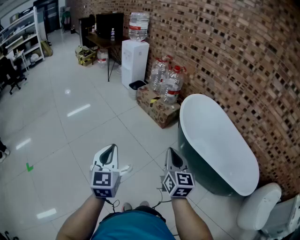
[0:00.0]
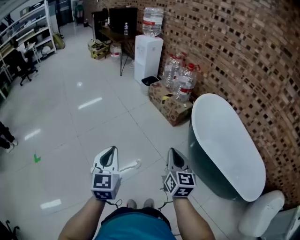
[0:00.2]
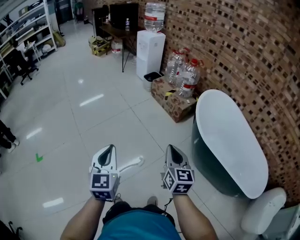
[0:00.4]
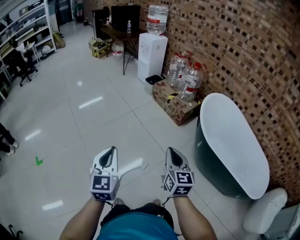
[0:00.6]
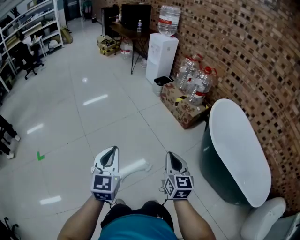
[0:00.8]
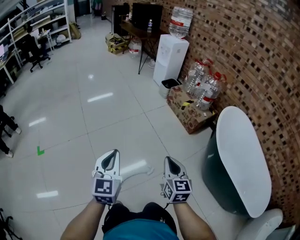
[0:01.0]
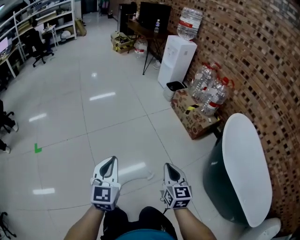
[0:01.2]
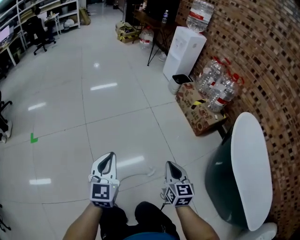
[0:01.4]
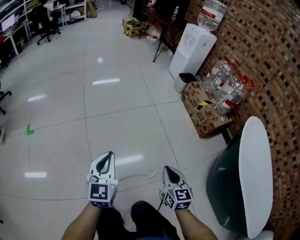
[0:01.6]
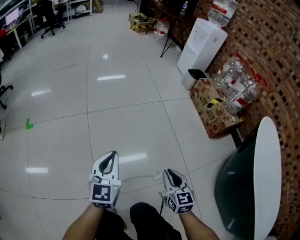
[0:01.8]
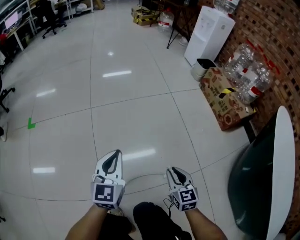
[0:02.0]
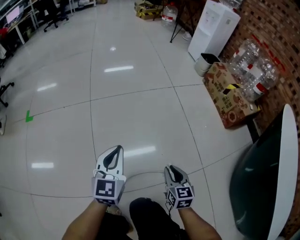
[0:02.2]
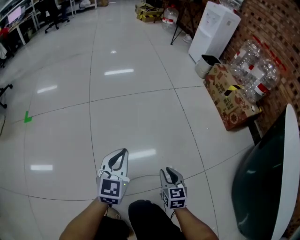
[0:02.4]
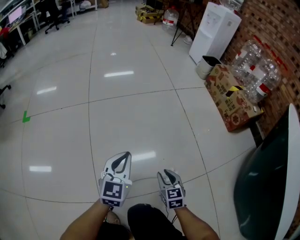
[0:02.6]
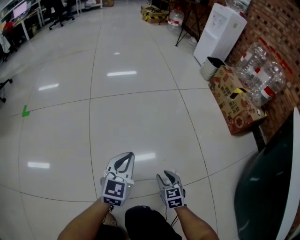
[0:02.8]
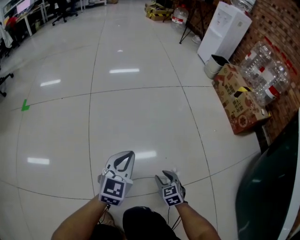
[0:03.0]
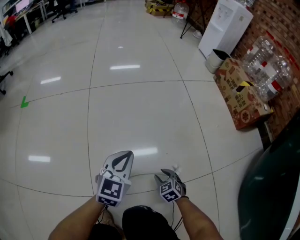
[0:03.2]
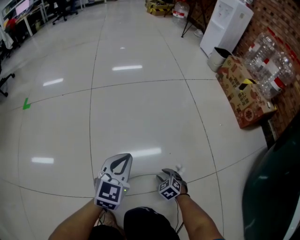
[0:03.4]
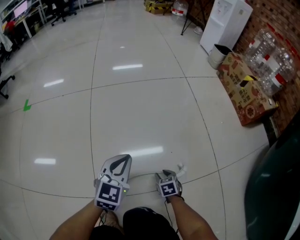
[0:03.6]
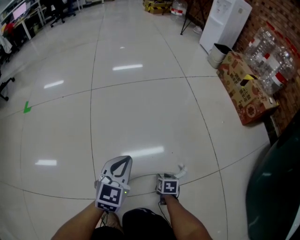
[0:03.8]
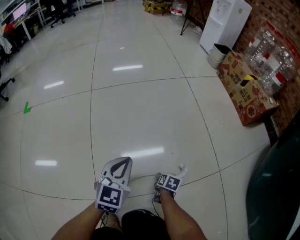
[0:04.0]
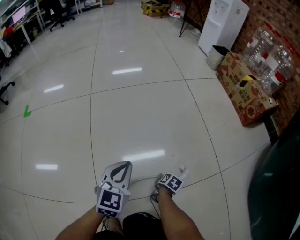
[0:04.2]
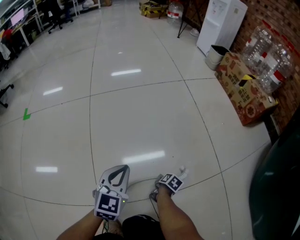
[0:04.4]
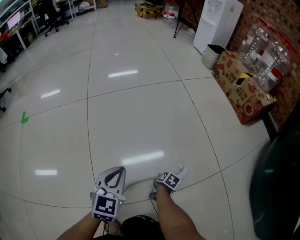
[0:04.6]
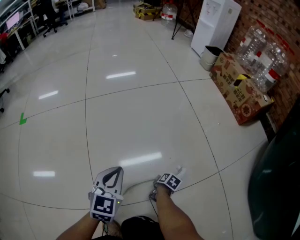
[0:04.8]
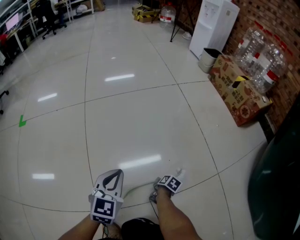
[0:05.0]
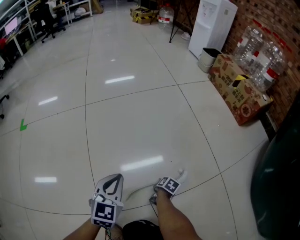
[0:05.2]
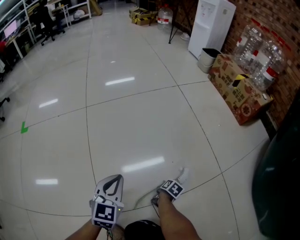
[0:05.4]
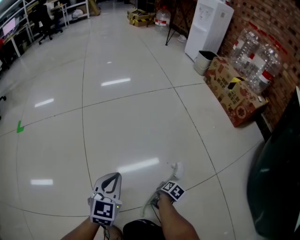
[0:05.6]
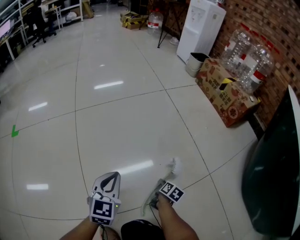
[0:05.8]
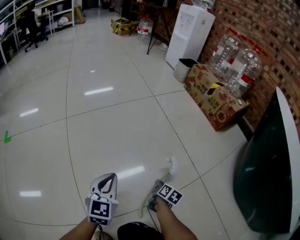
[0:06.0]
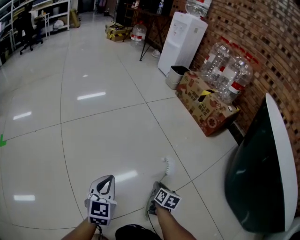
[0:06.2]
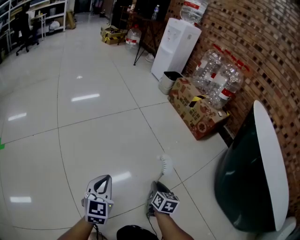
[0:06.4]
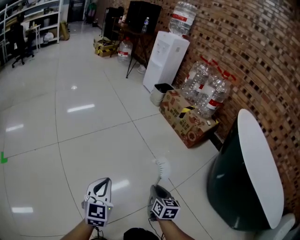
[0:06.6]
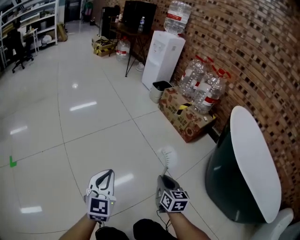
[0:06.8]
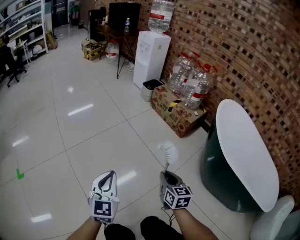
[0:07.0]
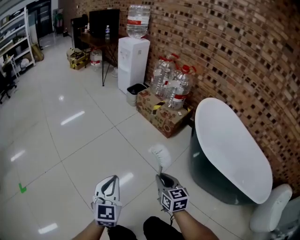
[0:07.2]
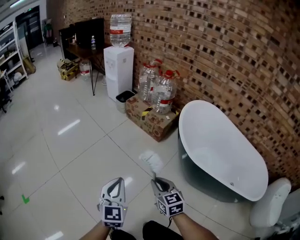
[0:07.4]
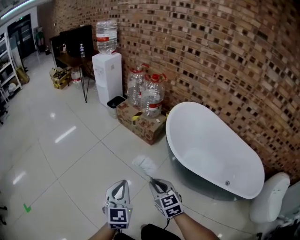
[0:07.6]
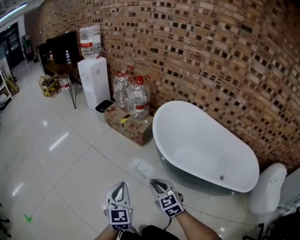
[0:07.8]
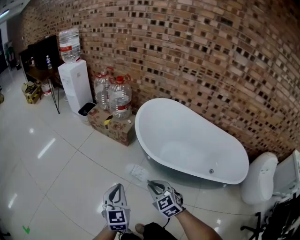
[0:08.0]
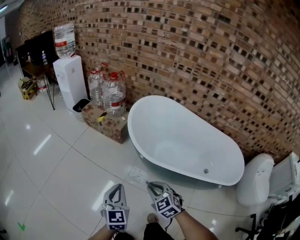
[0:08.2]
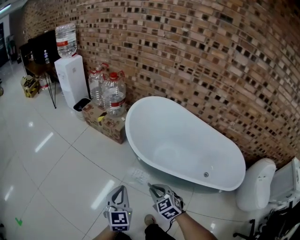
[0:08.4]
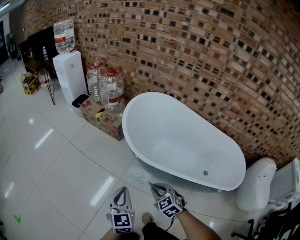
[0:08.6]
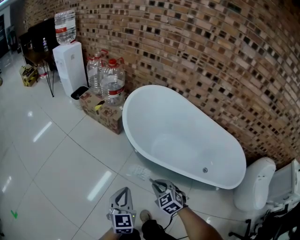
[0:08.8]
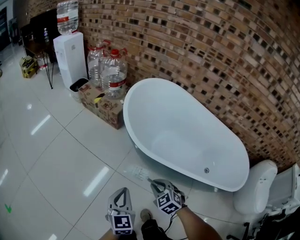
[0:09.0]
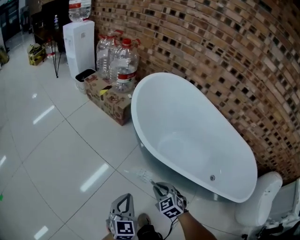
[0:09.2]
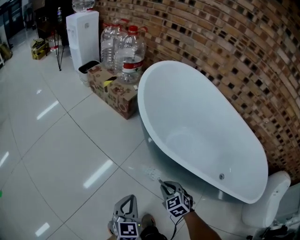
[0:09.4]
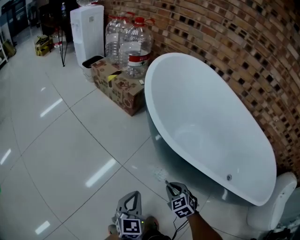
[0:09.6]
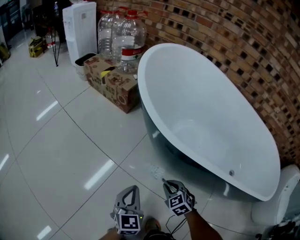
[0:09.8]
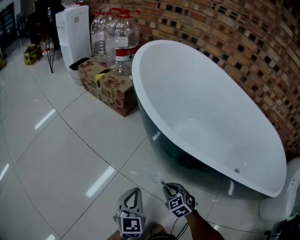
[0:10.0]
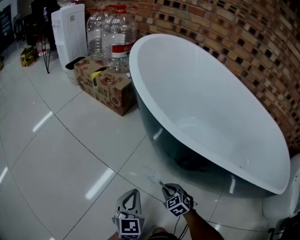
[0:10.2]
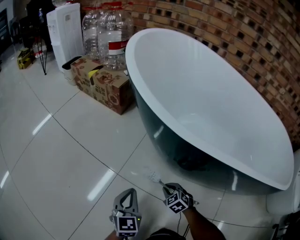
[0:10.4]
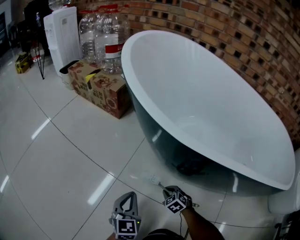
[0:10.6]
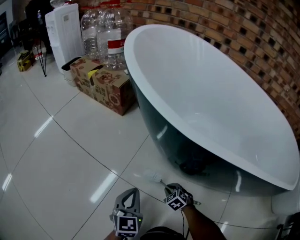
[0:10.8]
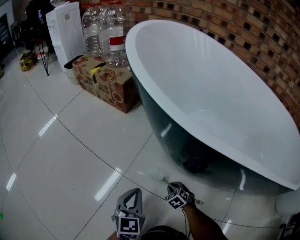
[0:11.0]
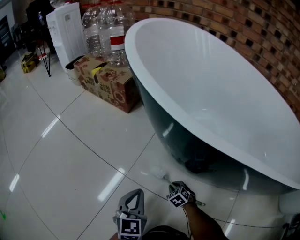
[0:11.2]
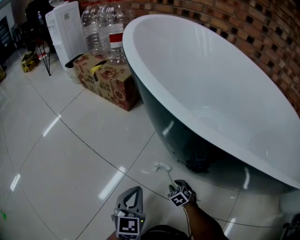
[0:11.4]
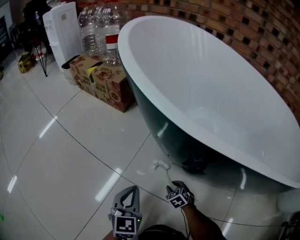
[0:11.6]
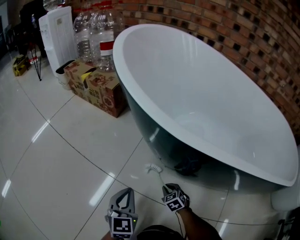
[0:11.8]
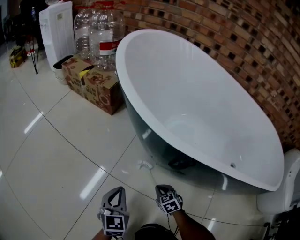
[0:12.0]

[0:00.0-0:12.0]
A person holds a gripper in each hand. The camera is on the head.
0:00.0 to 0:01.6: The grippers both shift downward, to the left and forward by approximately 50 cm. The right gripper turns by about 30 degrees.
0:01.6 to 0:03.0: Both grippers move downward, roughly 50 cm. The right gripper swivels some 30 degrees, and opens its fingers.
0:03.0 to 0:04.4: The left gripper shifts by roughly 5 cm. The right gripper moves downward, roughly 15 cm, and rotates around the line of its fingers by approximately 80 degrees, clockwise from behind.
0:04.4 to 0:06.0: The right gripper shifts some 15 cm upward and to the right, rotates approximately 20 degrees, and closes its fingers.
0:06.0 to 0:07.6: The left gripper shifts about 70 cm upward and to the right, and changes its angle by roughly 20 degrees; the right gripper shifts approximately 80 cm upward, and twists about 50 degrees counterclockwise, seen from behind.
0:07.6 to 0:09.0: The grippers both shift to the right and downward by approximately 30 cm. The right gripper changes its angle by about 30 degrees.
0:09.0 to 0:10.4: The two grippers go roughly 50 cm downward.
0:10.4 to 0:12.0: The right gripper moves roughly 15 cm downward and comes back, and opens, then closes once more.

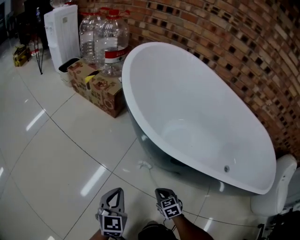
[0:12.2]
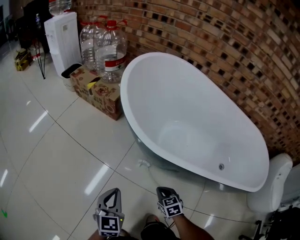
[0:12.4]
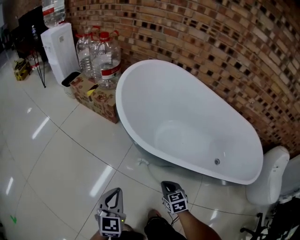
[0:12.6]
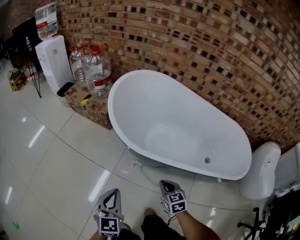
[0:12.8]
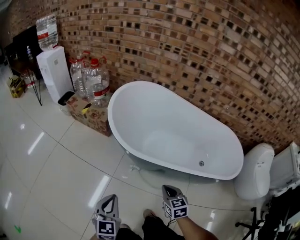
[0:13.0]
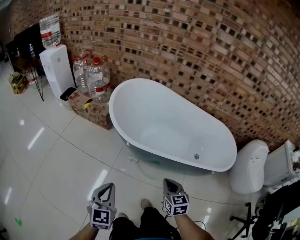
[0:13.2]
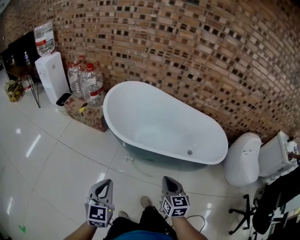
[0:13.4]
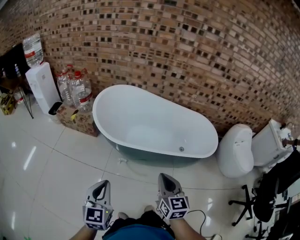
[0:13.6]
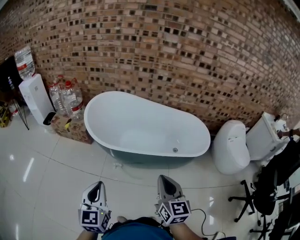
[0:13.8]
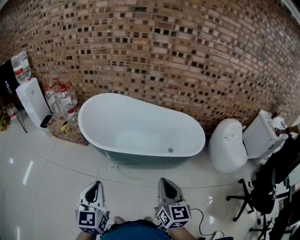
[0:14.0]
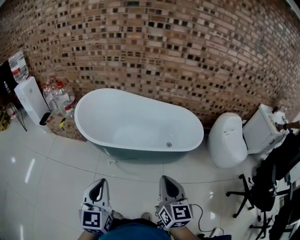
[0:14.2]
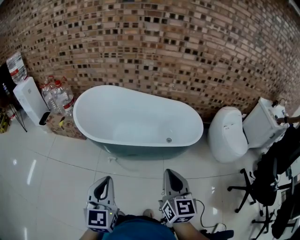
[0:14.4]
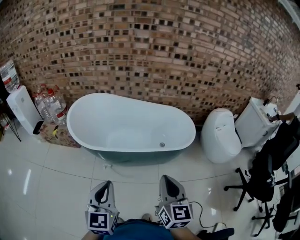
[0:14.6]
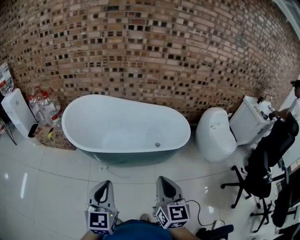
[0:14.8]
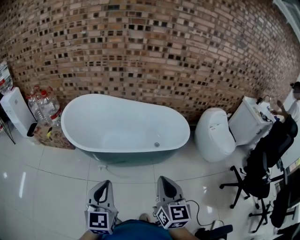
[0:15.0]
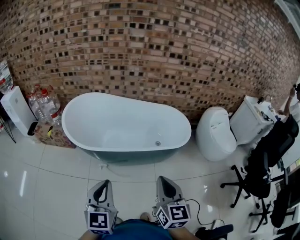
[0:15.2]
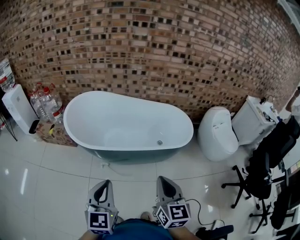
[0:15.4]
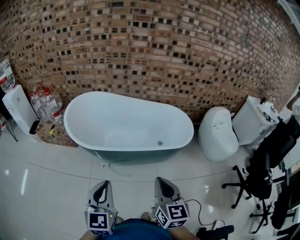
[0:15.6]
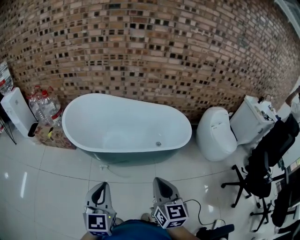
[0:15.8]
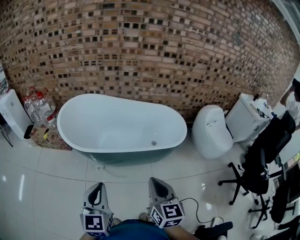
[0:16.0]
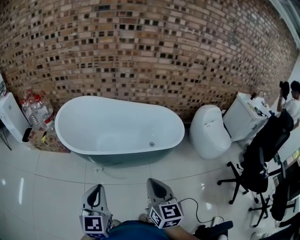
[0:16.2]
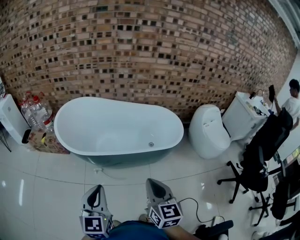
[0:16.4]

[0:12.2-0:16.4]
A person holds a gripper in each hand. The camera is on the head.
0:12.2 to 0:13.6: The left gripper shifts roughly 60 cm upward and backward. The right gripper heads upward, covering approximately 70 cm, and angles its fingers upward, by about 40 degrees.
0:13.6 to 0:15.0: The right gripper is displaced to the right, upward and backward by approximately 20 cm; the left gripper travels to the right by roughly 20 cm.
0:15.0 to 0:16.4: The grippers make only small movements.

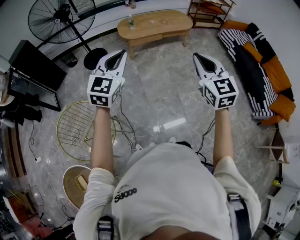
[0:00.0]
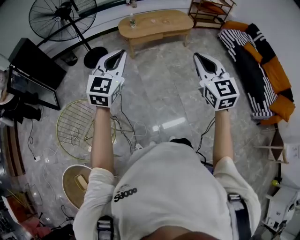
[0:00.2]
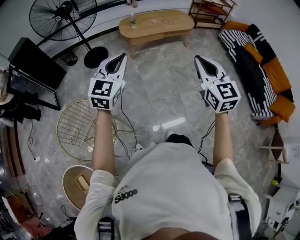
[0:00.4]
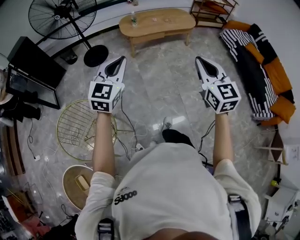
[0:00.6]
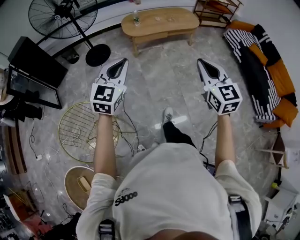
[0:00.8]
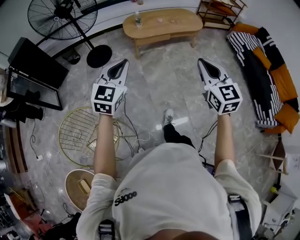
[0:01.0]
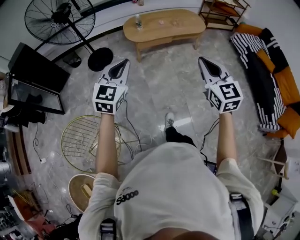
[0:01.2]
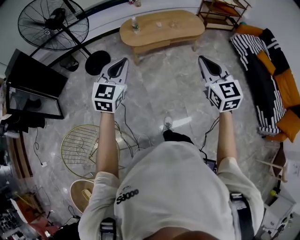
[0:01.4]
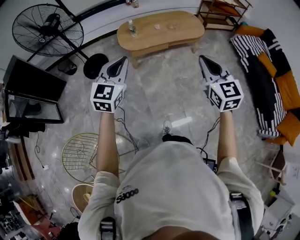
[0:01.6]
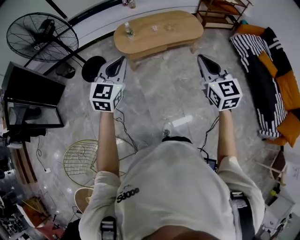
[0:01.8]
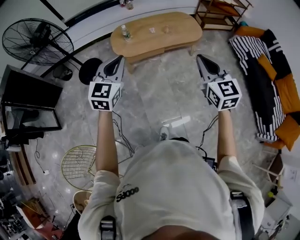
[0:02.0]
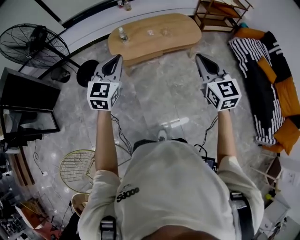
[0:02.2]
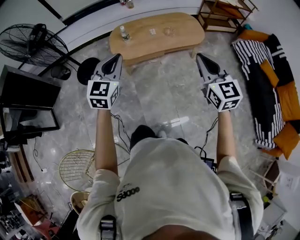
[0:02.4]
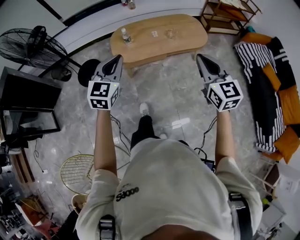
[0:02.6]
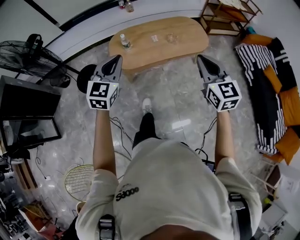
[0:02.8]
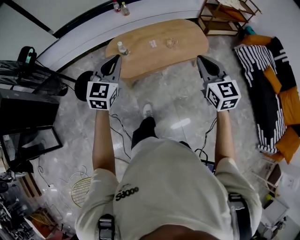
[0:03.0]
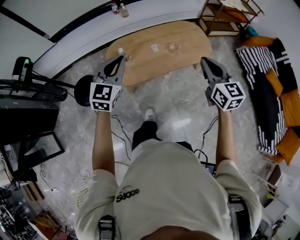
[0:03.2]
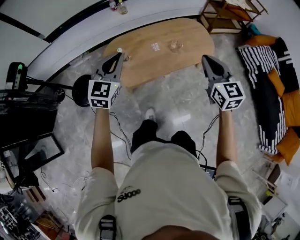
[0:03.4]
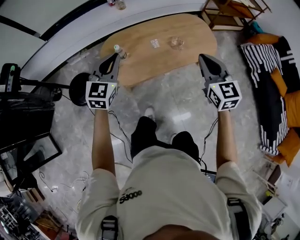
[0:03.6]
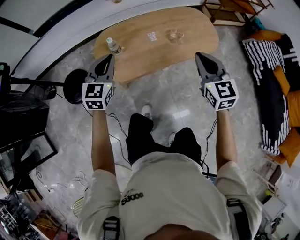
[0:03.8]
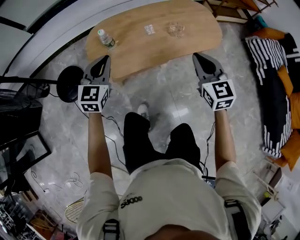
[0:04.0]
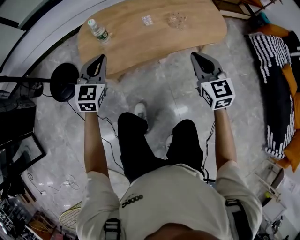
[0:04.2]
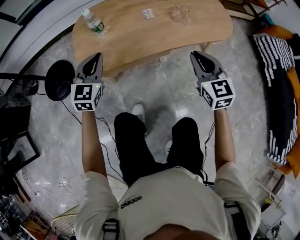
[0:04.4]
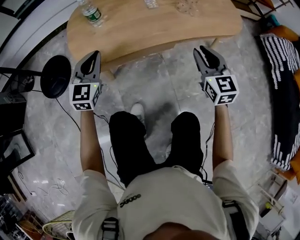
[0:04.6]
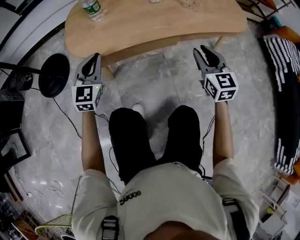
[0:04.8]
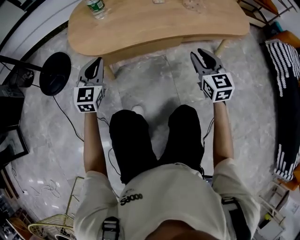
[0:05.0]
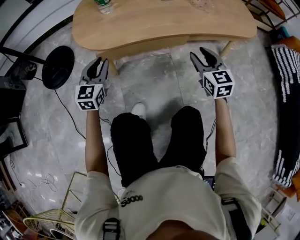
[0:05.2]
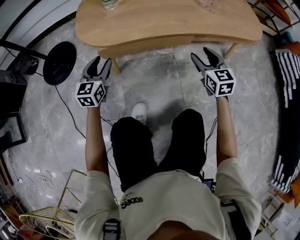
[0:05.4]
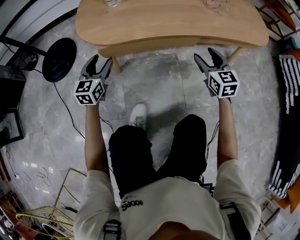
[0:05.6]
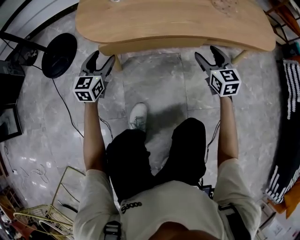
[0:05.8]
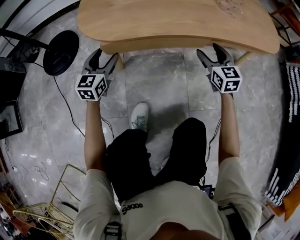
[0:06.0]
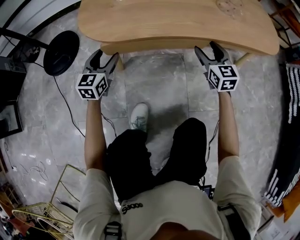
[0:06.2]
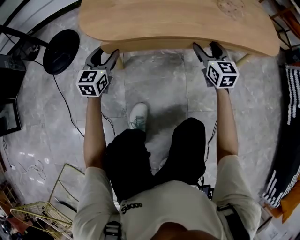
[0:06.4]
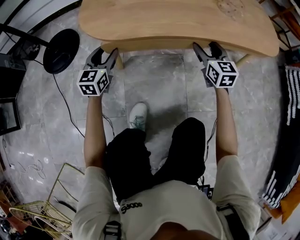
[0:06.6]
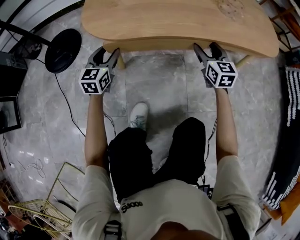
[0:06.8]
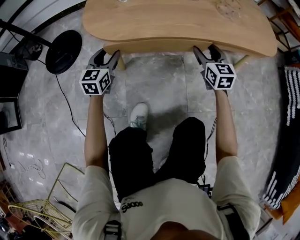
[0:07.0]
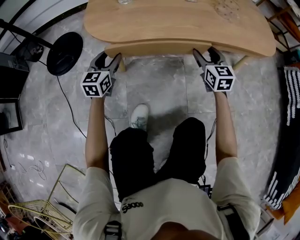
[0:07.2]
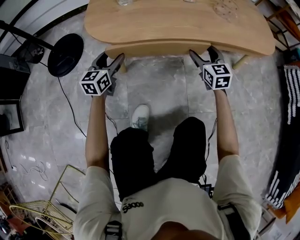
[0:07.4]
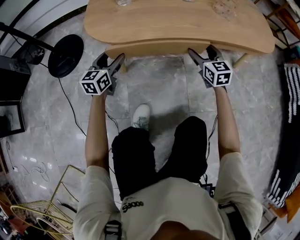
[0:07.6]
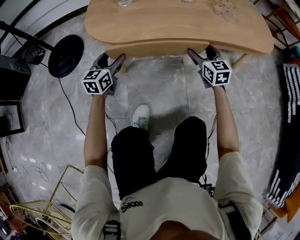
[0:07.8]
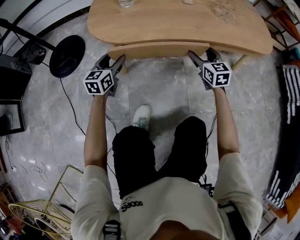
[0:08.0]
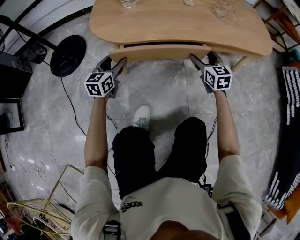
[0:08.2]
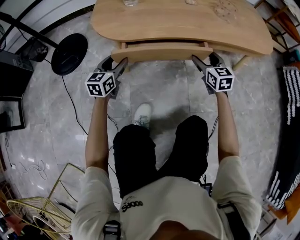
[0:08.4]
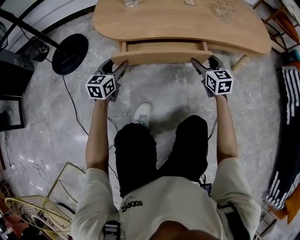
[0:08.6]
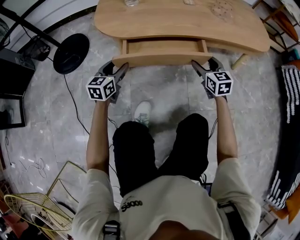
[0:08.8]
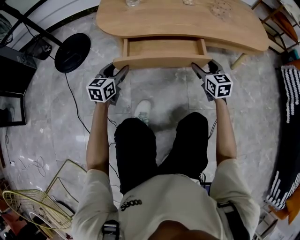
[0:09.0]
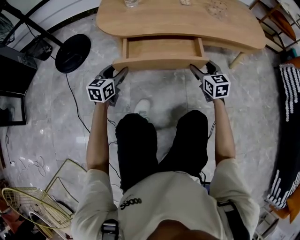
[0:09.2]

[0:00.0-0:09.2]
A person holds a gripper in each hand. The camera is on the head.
0:00.0 to 0:01.6: Both grippers travel together forward, some 30 cm.
0:01.6 to 0:03.0: The two grippers go approximately 40 cm forward.
0:03.0 to 0:04.6: Both grippers travel together downward, about 50 cm.
0:04.6 to 0:06.2: The right gripper travels downward and forward by approximately 20 cm, and opens up. Meanwhile the left gripper goes approximately 20 cm downward, and opens.
0:06.2 to 0:07.6: The grippers move only a little.
0:07.6 to 0:09.2: The grippers both shift backward by about 10 cm.
